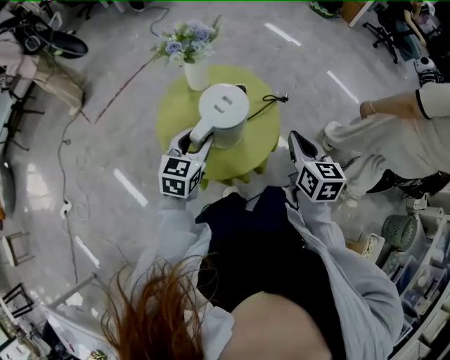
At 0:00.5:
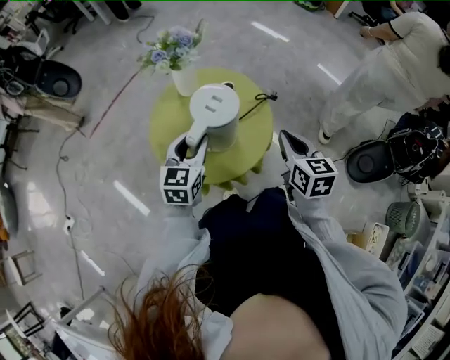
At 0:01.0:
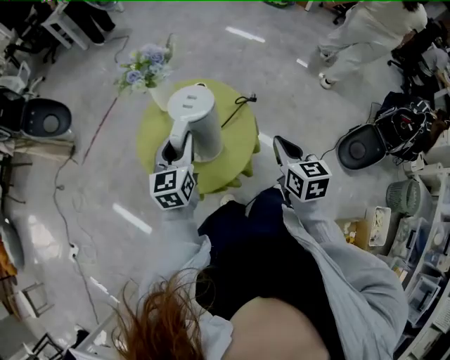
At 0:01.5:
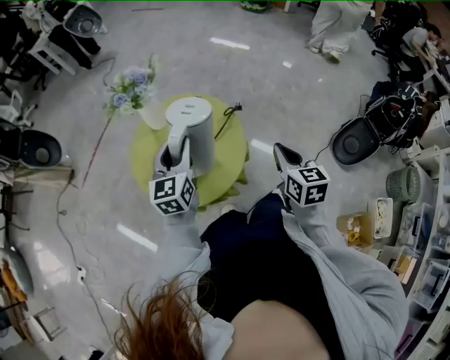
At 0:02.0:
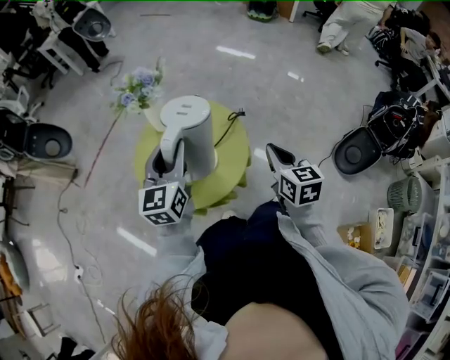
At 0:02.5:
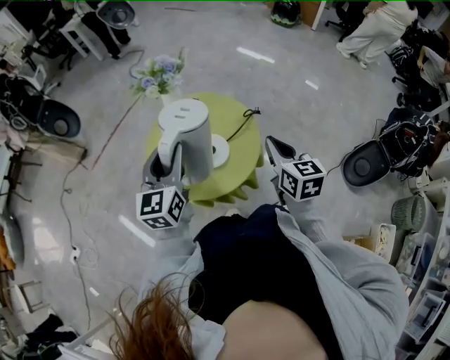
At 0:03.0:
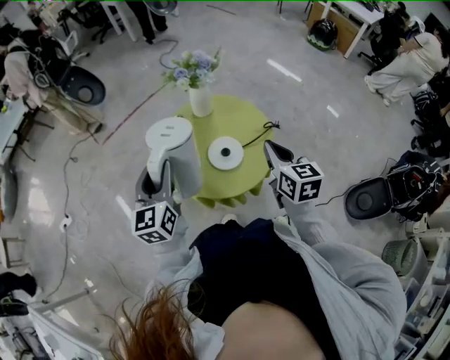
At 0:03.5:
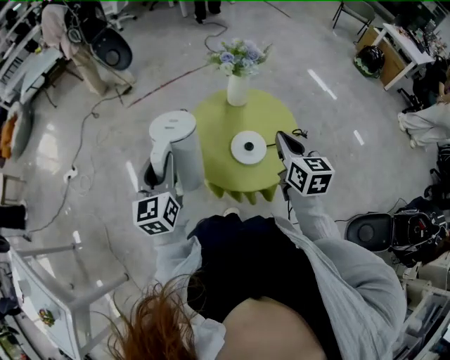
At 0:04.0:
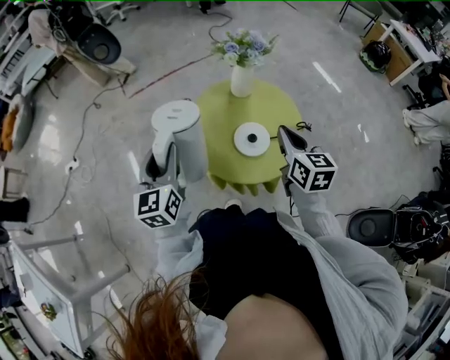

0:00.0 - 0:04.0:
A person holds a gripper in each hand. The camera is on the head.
0:00.0 - 0:02.0: The left gripper moves upward, about 10 cm, and turns by approximately 20 degrees.
0:02.0 - 0:04.0: The right gripper shifts by some 15 cm, and changes its angle by some 30 degrees. The left gripper ends up about 25 cm from where it was, and turns by roughly 40 degrees.

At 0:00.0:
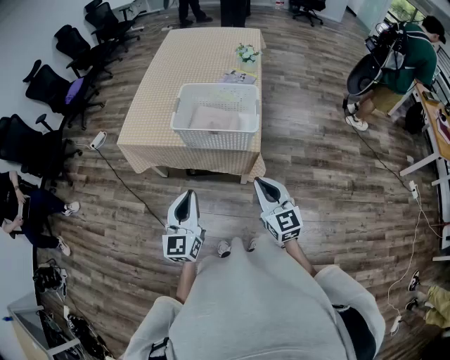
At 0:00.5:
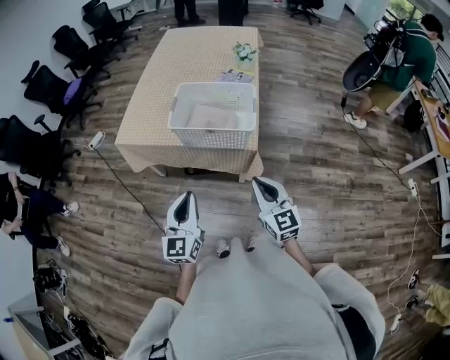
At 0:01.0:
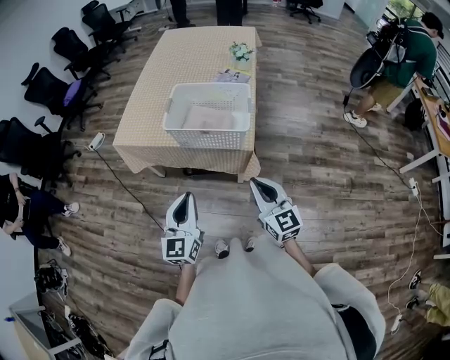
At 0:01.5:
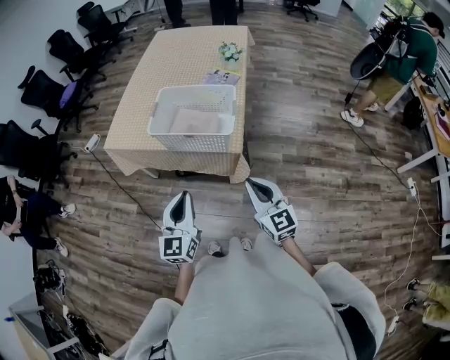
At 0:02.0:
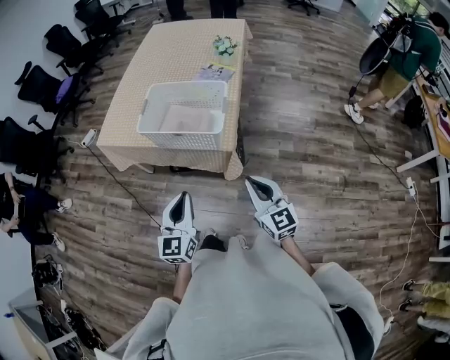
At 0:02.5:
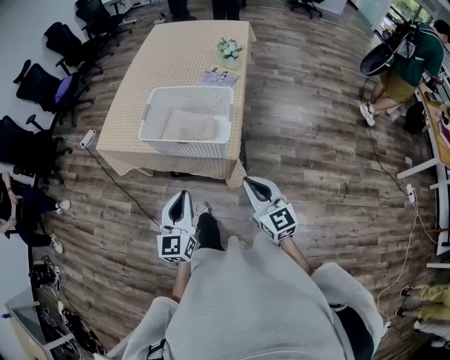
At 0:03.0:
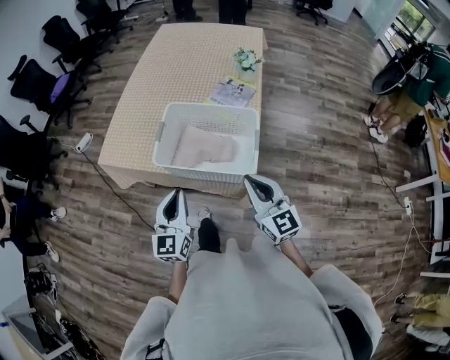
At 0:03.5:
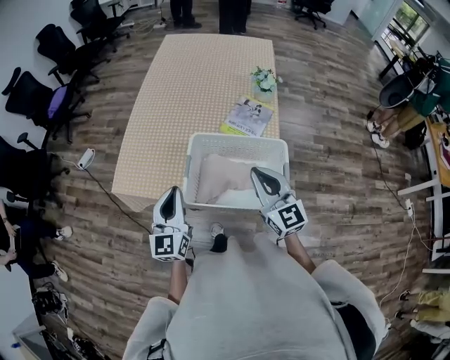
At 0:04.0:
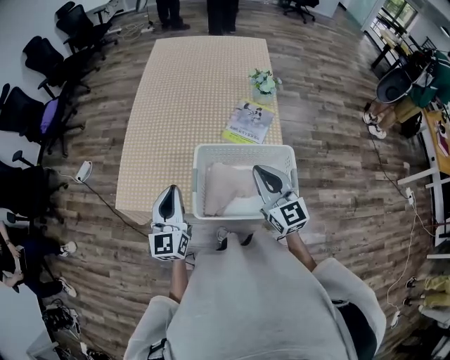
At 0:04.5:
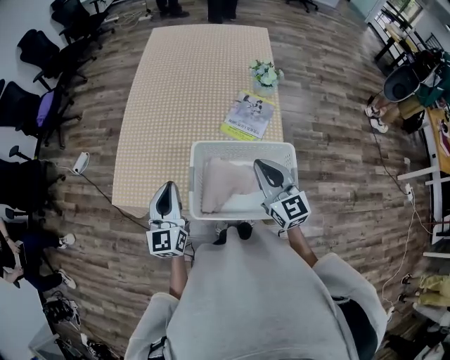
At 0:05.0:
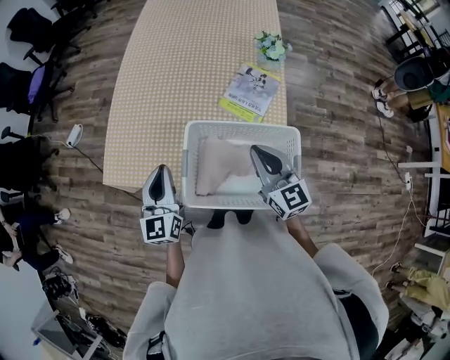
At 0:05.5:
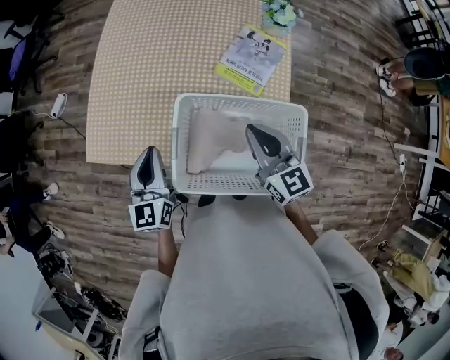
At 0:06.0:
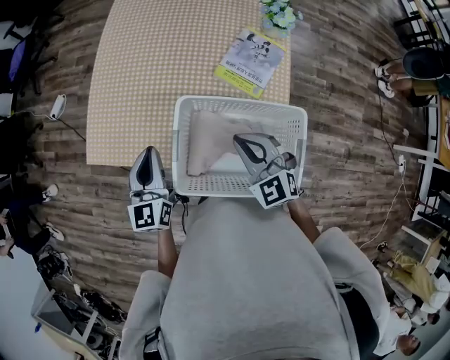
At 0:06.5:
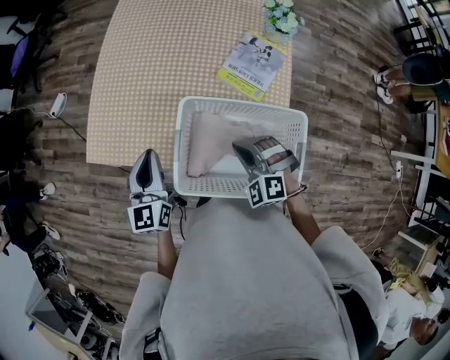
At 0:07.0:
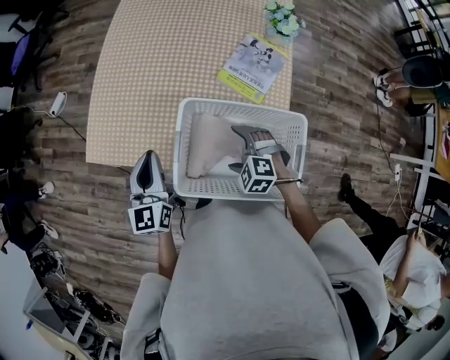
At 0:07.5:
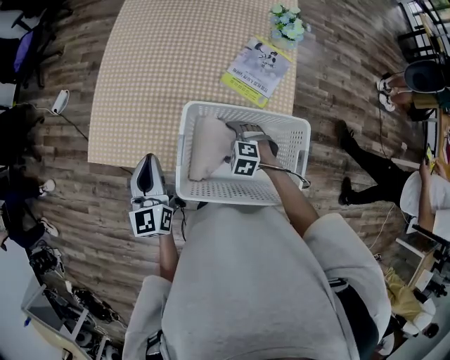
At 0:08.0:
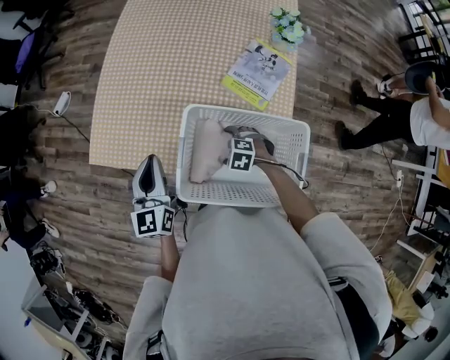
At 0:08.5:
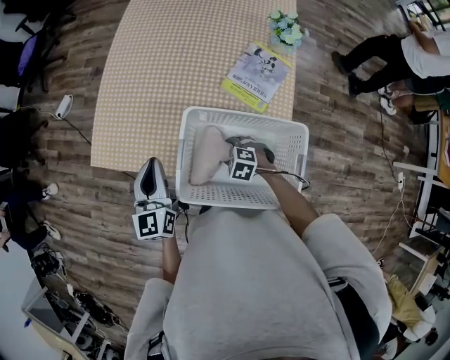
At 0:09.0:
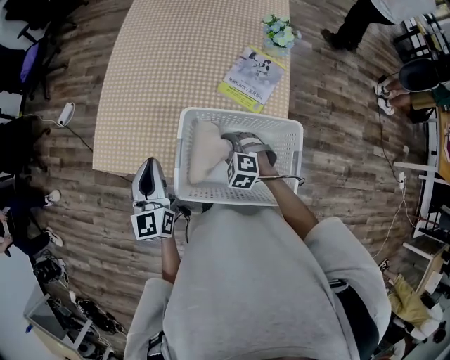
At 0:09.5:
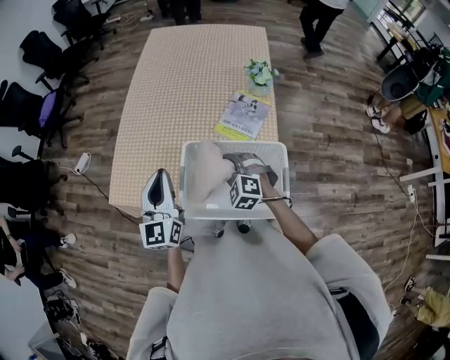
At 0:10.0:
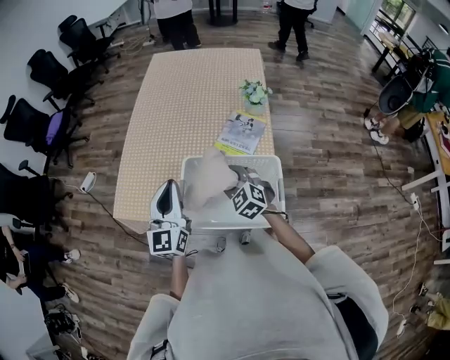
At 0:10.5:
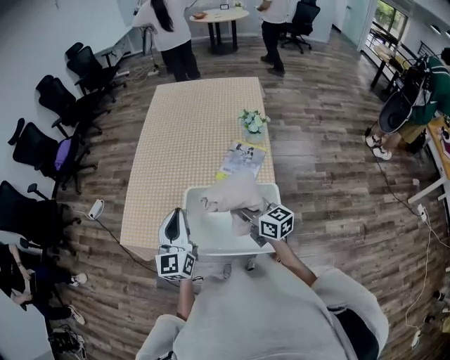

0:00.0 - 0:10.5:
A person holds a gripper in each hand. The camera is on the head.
0:00.0 - 0:02.0: Both grippers move to the right, some 10 cm.
0:02.0 - 0:04.0: Both grippers are carried forward and to the left, roughly 40 cm.
0:04.0 - 0:06.5: The left gripper shifts roughly 10 cm downward, while the right gripper goes some 15 cm downward, and tilts its fingers approximately 40 degrees downward.
0:06.5 - 0:08.5: The right gripper shifts some 15 cm downward, rotates roughly 40 degrees, and opens and closes again.
0:08.5 - 0:10.5: The right gripper goes roughly 25 cm upward, and tips its fingers upward by about 60 degrees. The left gripper heads upward and to the right, covering approximately 15 cm, and turns by roughly 20 degrees.

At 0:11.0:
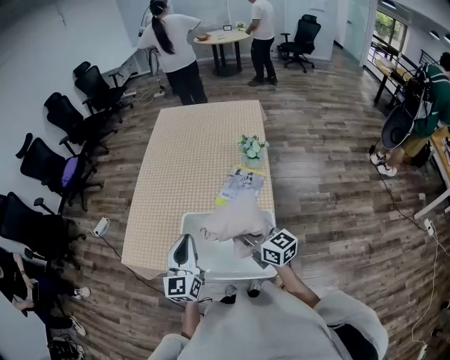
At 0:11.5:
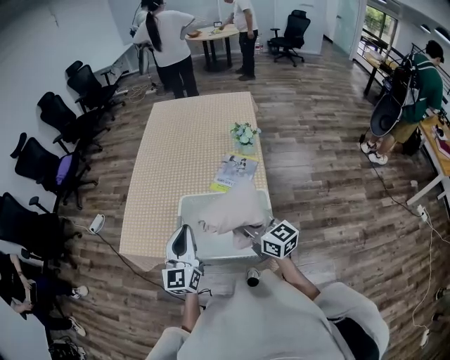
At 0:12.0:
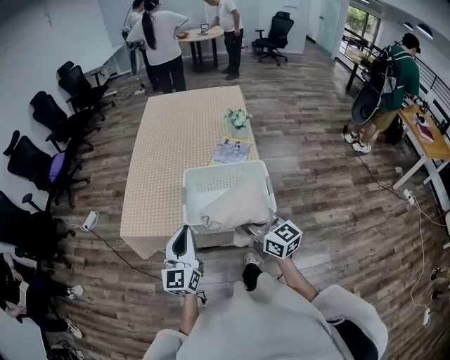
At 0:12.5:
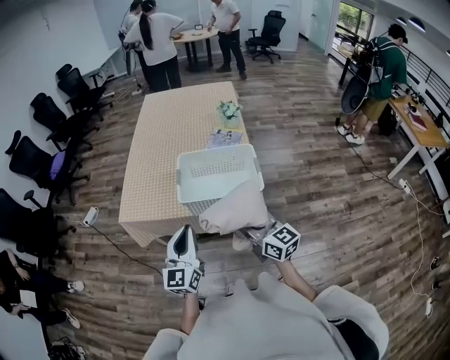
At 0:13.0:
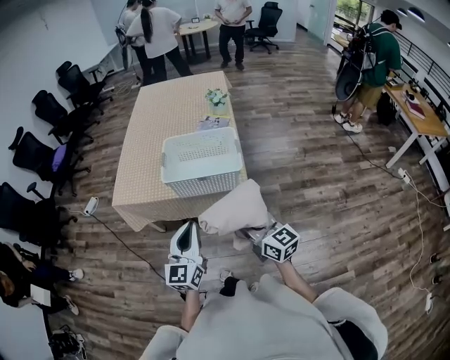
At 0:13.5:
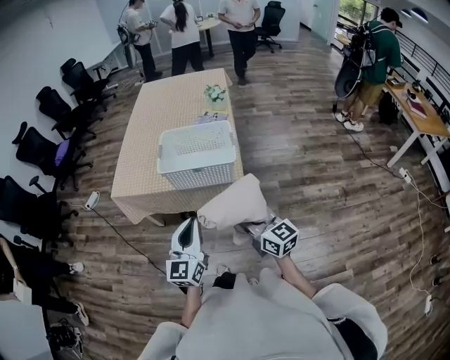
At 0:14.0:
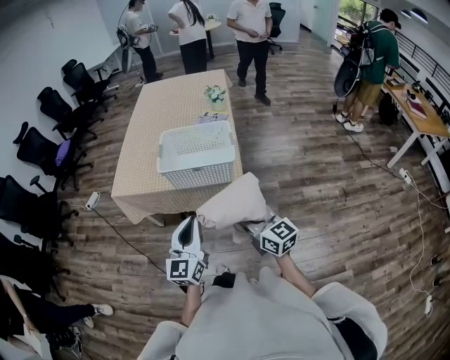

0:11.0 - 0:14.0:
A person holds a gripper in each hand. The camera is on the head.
0:11.0 - 0:12.5: The grippers both shift backward by some 25 cm.
0:12.5 - 0:14.0: The two grippers go approximately 15 cm backward and to the right.

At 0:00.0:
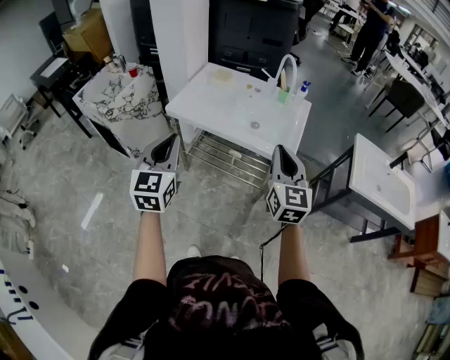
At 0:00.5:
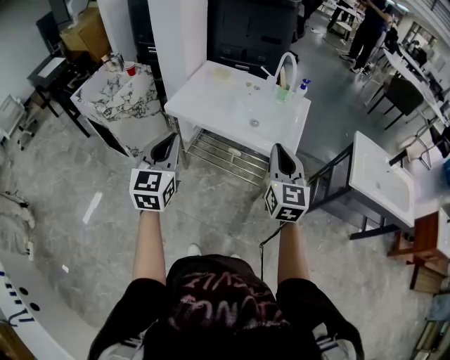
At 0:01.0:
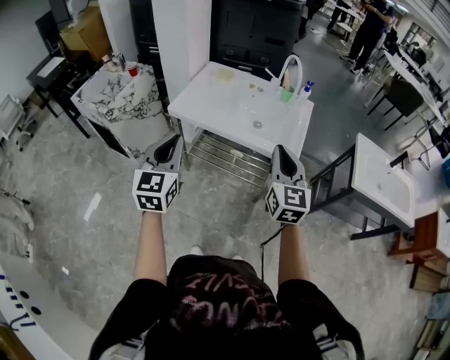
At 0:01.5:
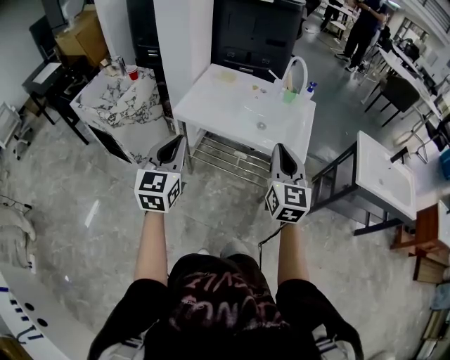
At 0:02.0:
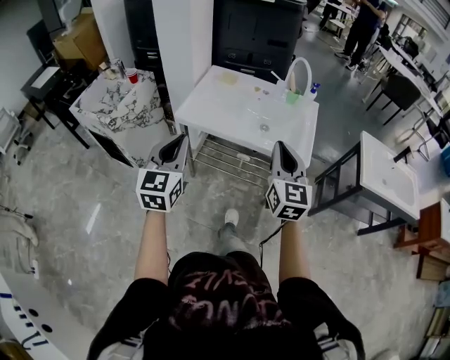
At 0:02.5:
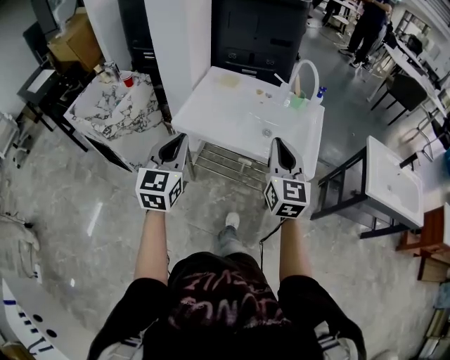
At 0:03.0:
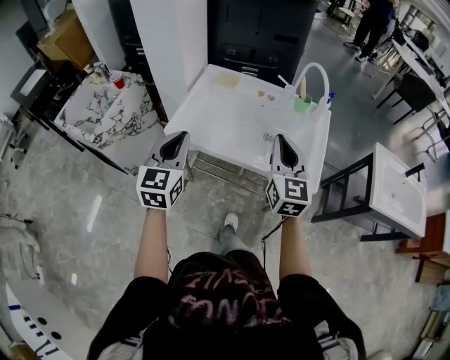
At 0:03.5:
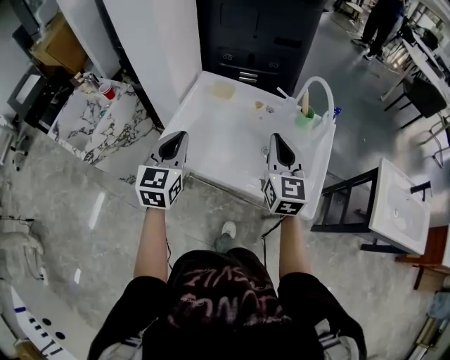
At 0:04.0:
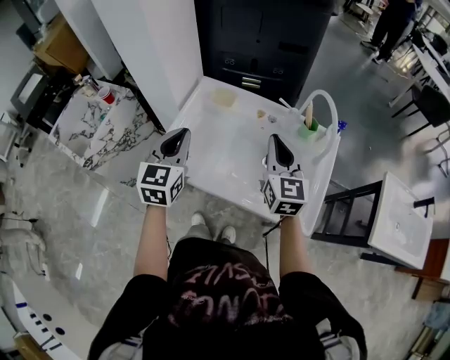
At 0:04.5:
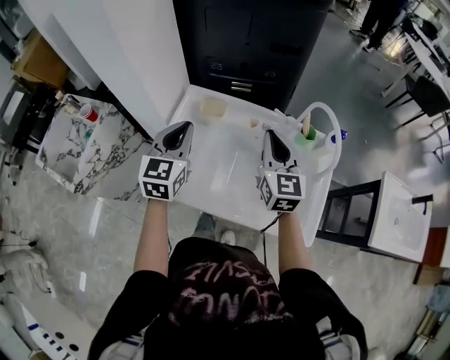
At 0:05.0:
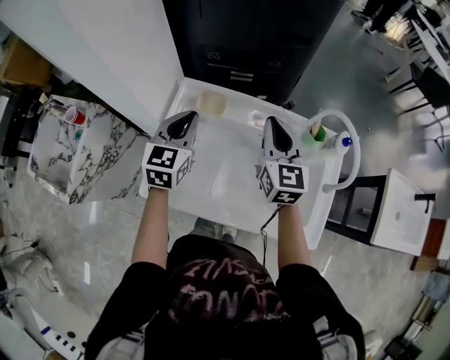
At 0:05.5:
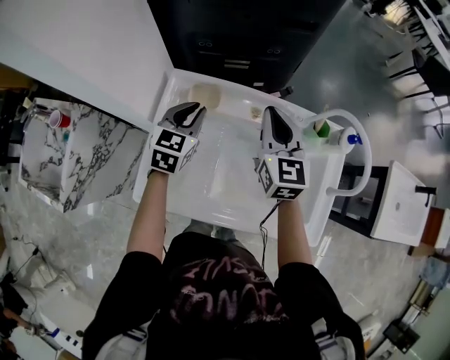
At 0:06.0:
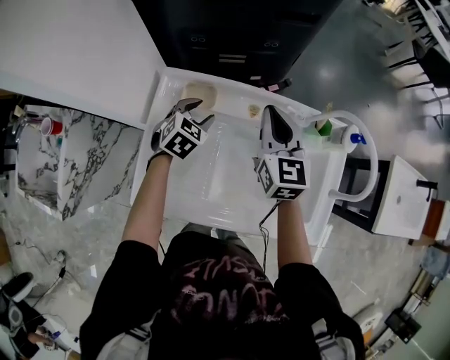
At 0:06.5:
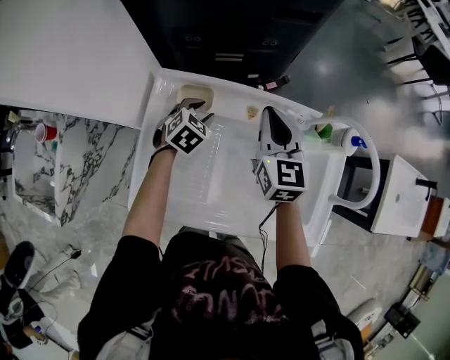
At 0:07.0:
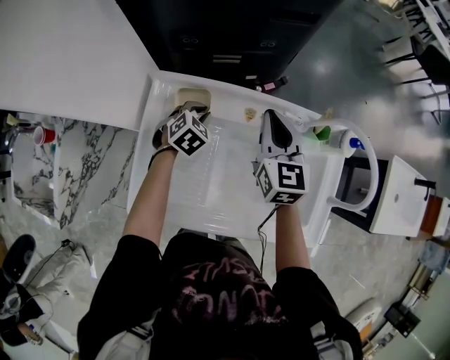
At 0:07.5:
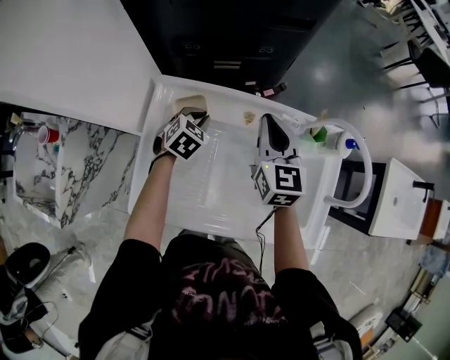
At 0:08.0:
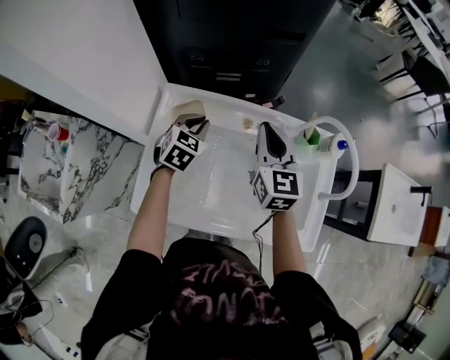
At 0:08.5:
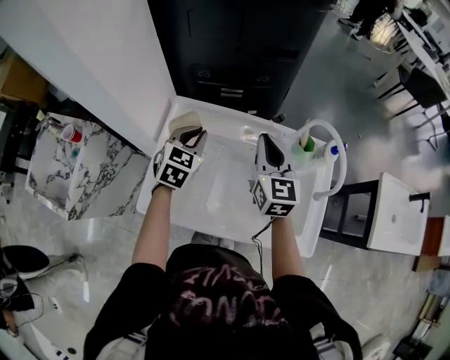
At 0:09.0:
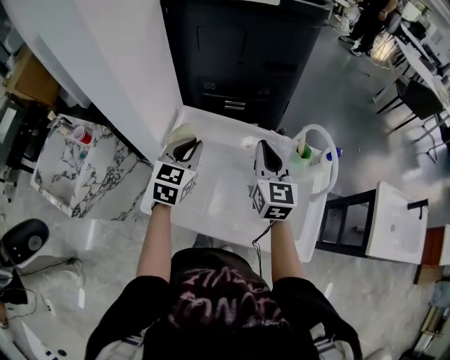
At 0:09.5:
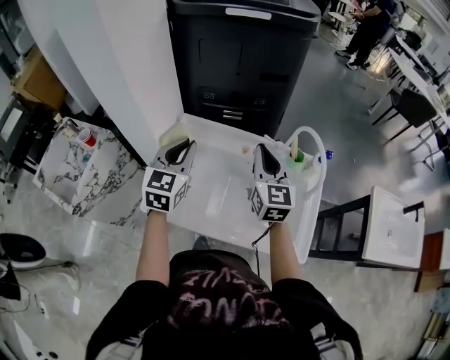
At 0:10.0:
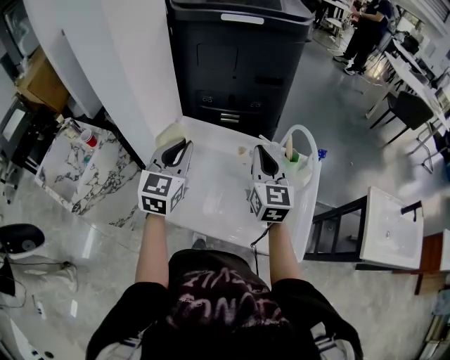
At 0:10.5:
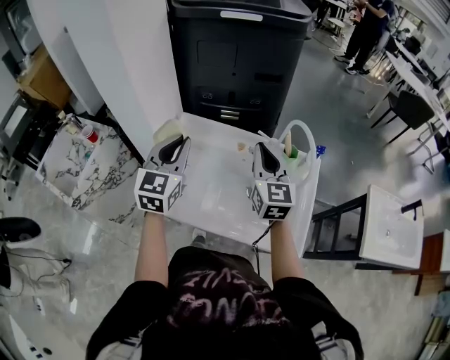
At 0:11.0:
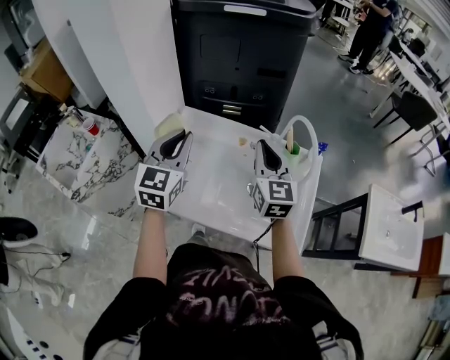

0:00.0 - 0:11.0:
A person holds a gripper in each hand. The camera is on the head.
0:00.0 - 0:02.0: The two grippers go about 10 cm to the left.
0:02.0 - 0:03.5: The two grippers go approximately 30 cm forward.
0:03.5 - 0:05.5: The right gripper shifts about 30 cm forward, while the left gripper travels forward and downward by roughly 35 cm, and changes its angle by some 20 degrees.
0:05.5 - 0:07.5: The left gripper moves downward, about 10 cm, swivels about 30 degrees, and opens and closes again.
0:07.5 - 0:09.0: The left gripper travels upward and backward by approximately 25 cm, and changes its angle by some 40 degrees; the right gripper travels backward and upward by roughly 15 cm.
0:09.0 - 0:11.0: The left gripper moves upward and backward, some 15 cm. Meanwhile the right gripper moves backward, roughly 5 cm.
